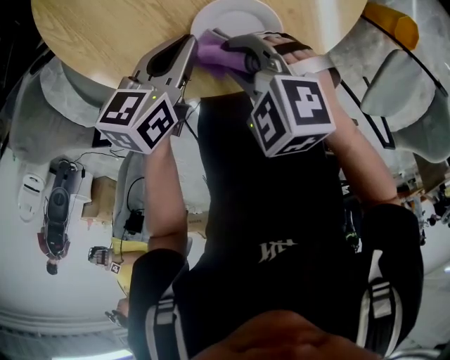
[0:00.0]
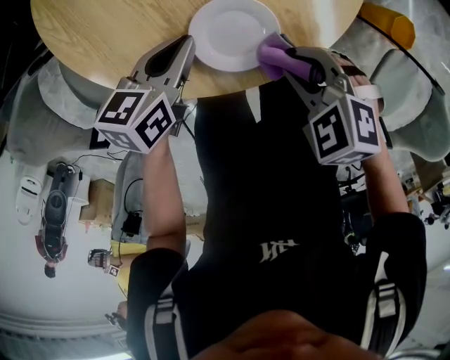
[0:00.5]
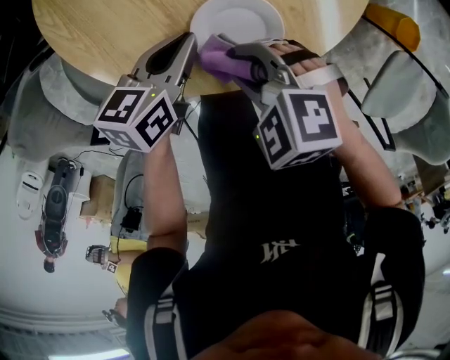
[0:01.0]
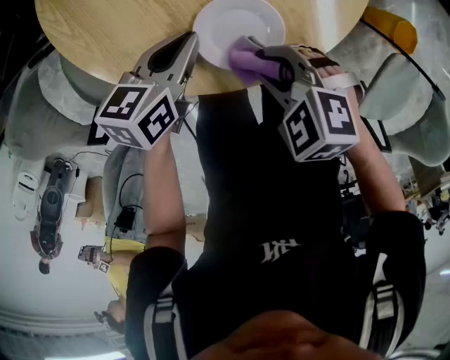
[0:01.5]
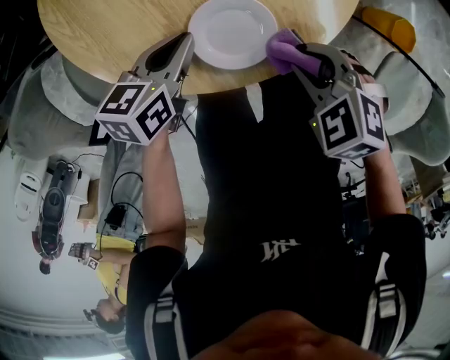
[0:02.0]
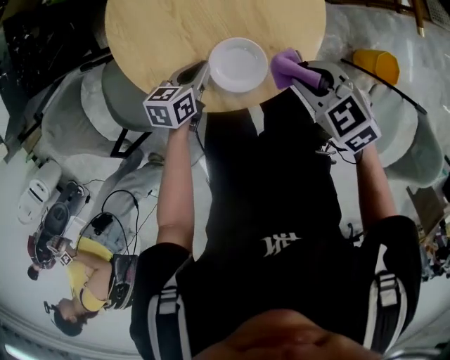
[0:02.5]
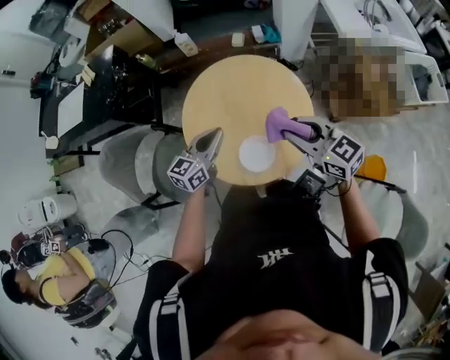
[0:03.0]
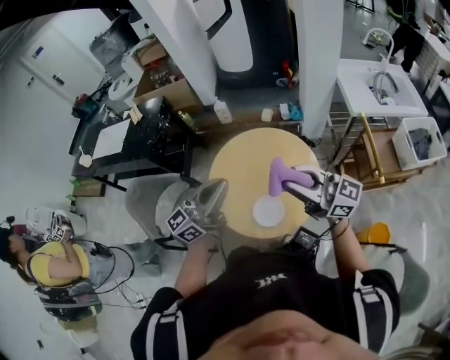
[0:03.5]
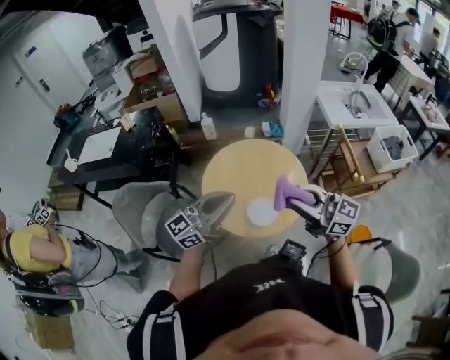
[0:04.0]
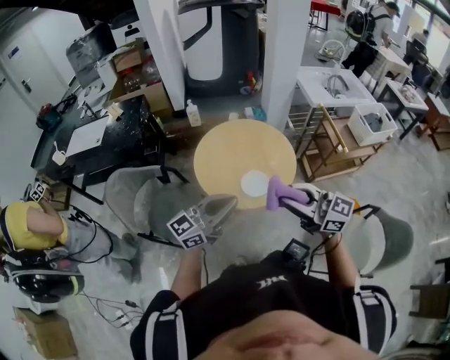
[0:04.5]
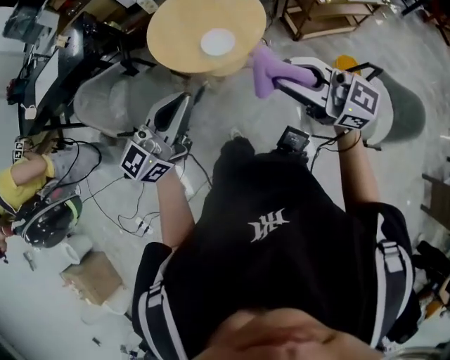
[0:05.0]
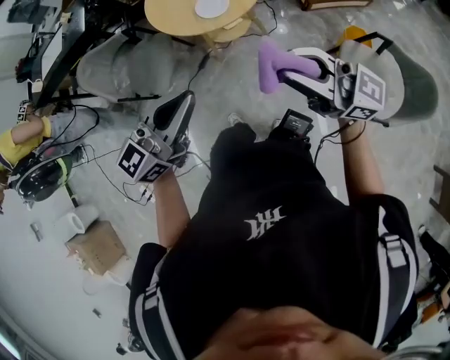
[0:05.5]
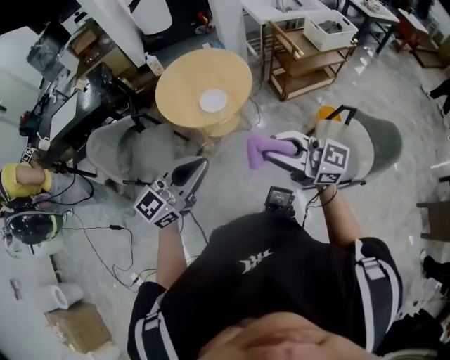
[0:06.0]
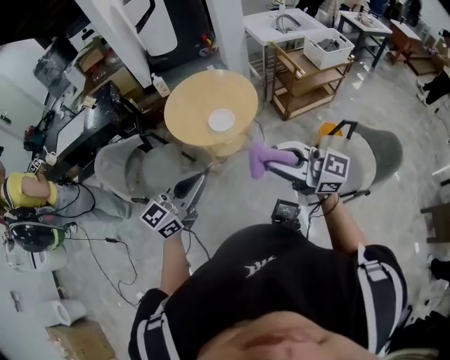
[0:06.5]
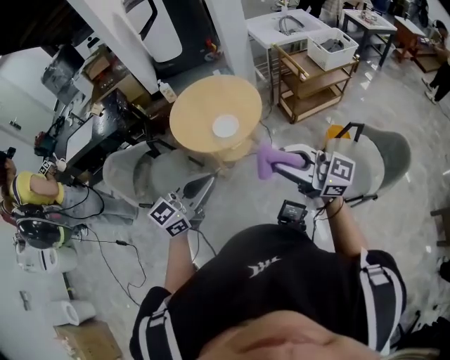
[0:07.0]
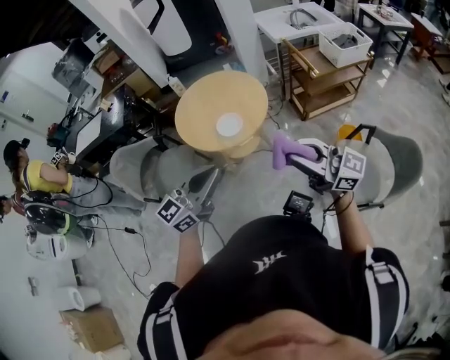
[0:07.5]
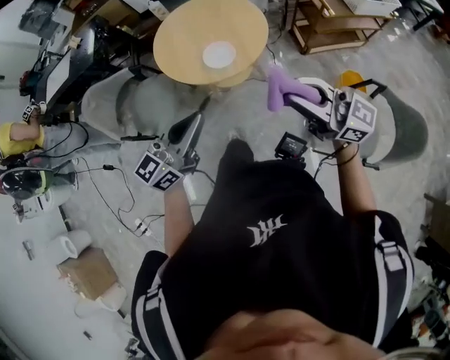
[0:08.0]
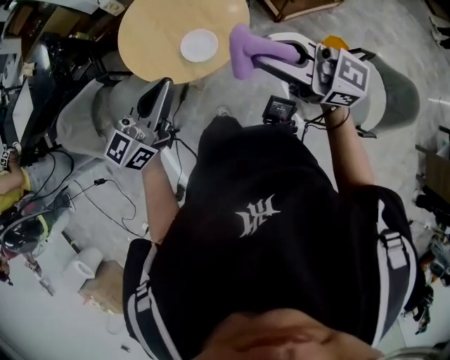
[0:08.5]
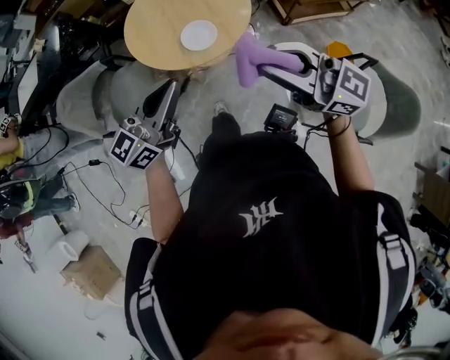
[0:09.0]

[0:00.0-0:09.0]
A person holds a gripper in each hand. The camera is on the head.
0:00.0 to 0:02.0: The right gripper moves approximately 15 cm.
0:02.0 to 0:04.5: The grippers both shift upward by approximately 40 cm. The left gripper angles its fingers upward, by some 60 degrees; the right gripper angles its fingers upward, by some 70 degrees.
0:04.5 to 0:07.0: The grippers both shift backward by roughly 20 cm.
0:07.0 to 0:09.0: Both grippers travel together forward, roughly 15 cm.

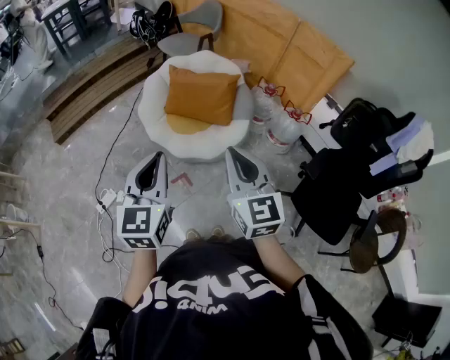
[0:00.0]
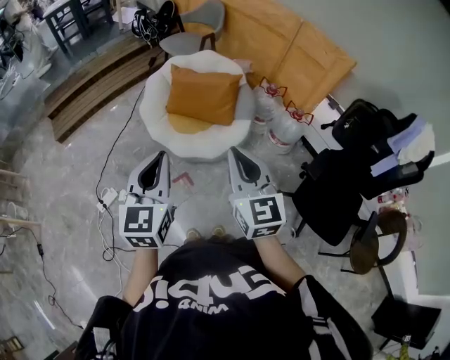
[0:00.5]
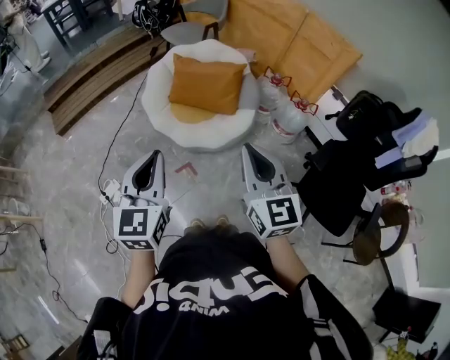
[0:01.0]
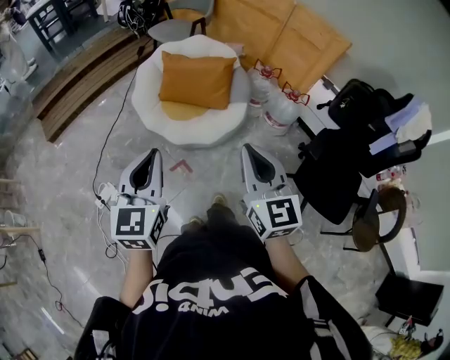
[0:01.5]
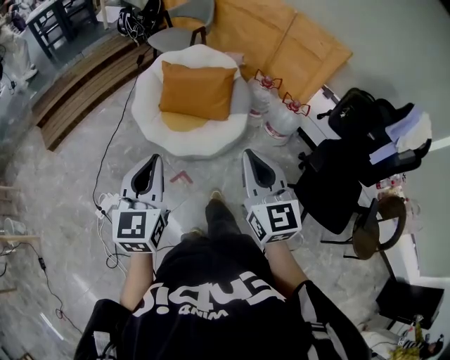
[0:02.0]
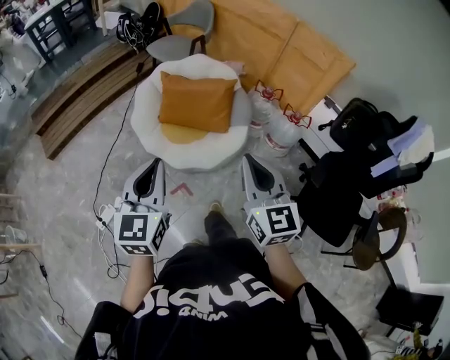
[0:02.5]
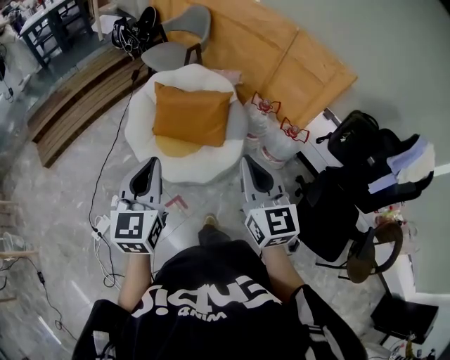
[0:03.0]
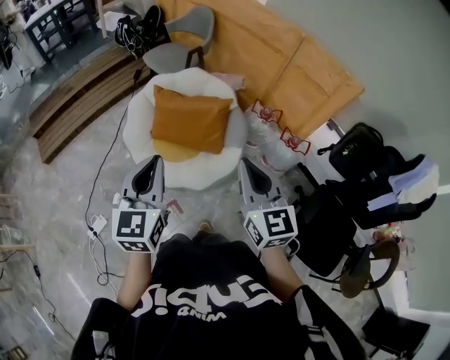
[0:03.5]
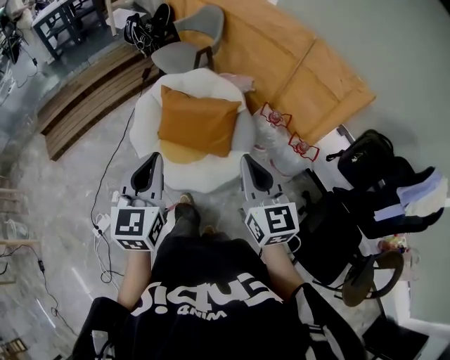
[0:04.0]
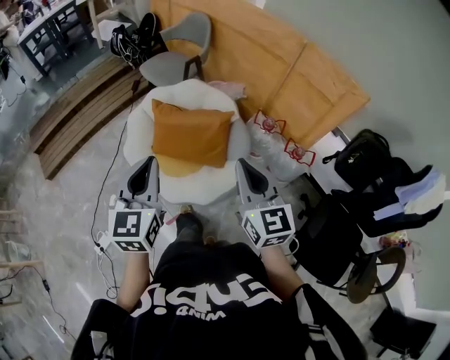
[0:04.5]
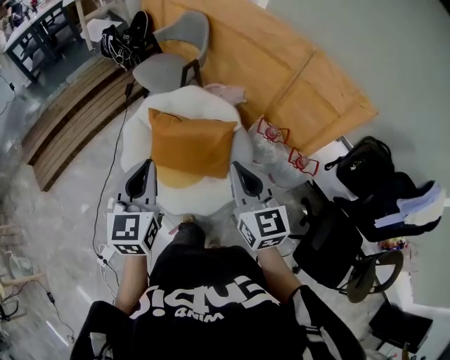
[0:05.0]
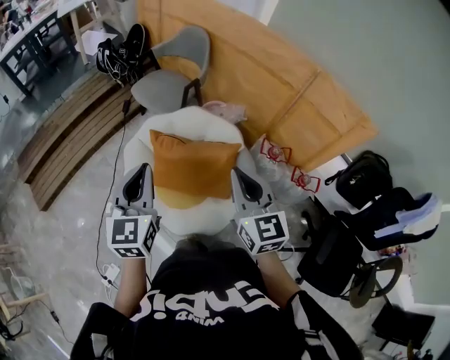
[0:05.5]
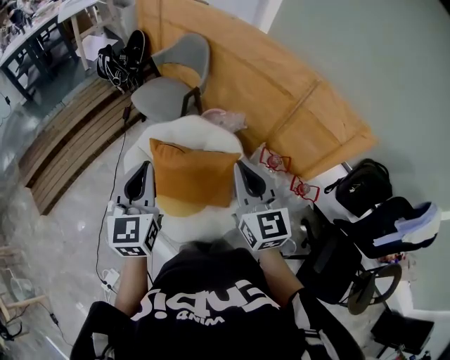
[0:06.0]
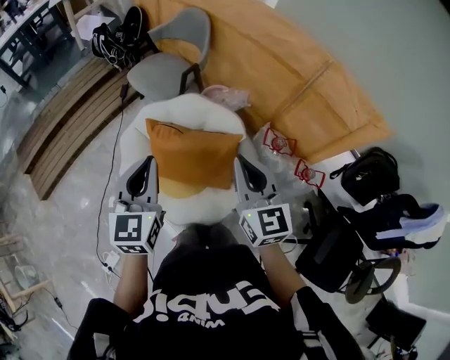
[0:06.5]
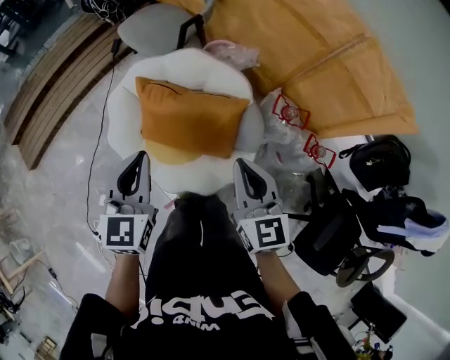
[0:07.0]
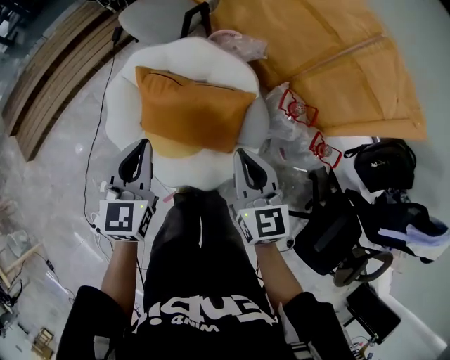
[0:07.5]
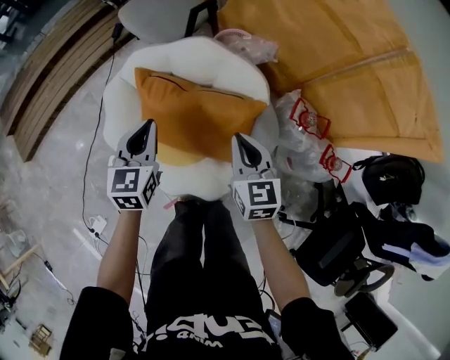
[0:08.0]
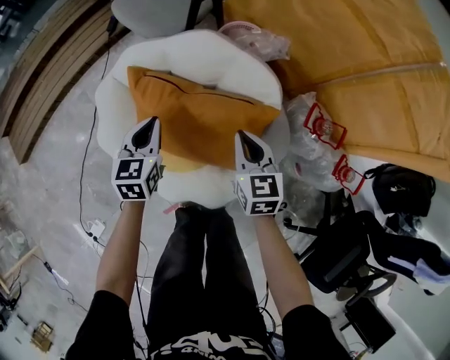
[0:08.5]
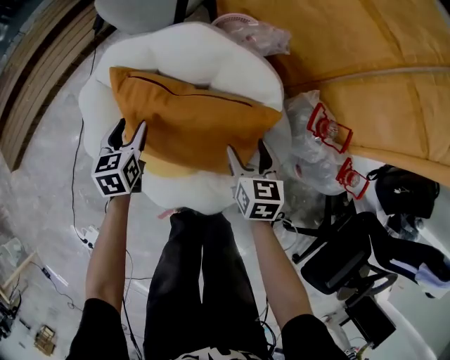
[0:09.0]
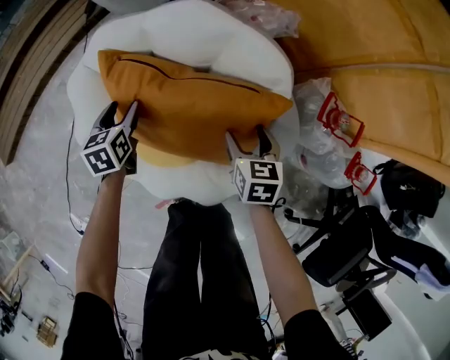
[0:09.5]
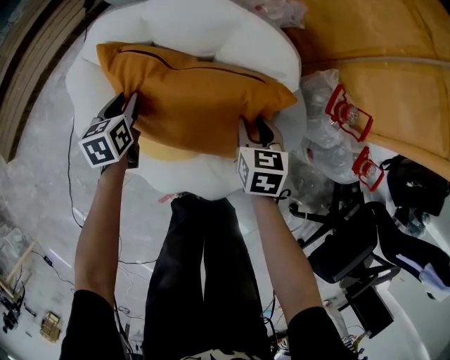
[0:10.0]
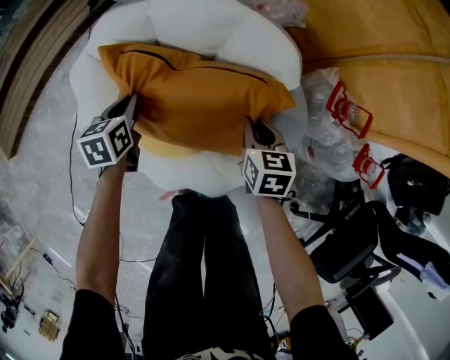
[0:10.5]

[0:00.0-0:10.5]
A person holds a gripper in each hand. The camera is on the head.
0:00.0 to 0:02.0: The left gripper moves some 5 cm.
0:02.0 to 0:04.0: Both grippers move forward, some 25 cm.
0:04.0 to 0:06.5: Both grippers move forward, roughly 30 cm.
0:06.5 to 0:08.5: Both grippers travel together downward, approximately 40 cm. The right gripper rotates approximately 30 degrees; the left gripper turns by roughly 20 degrees.
0:08.5 to 0:10.5: Both grippers travel together downward, roughly 15 cm. The left gripper opens, then closes again. The right gripper opens, then closes once more.

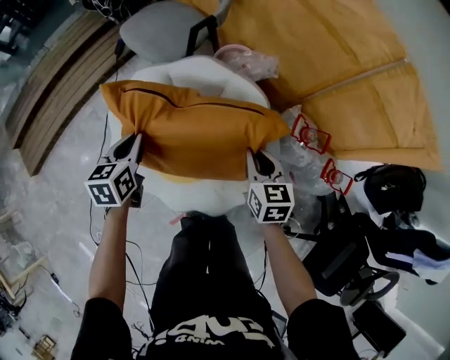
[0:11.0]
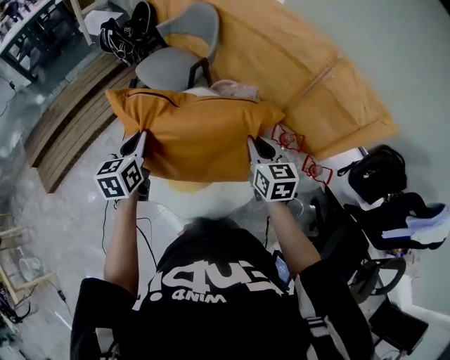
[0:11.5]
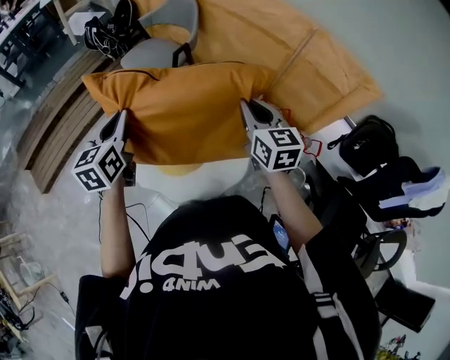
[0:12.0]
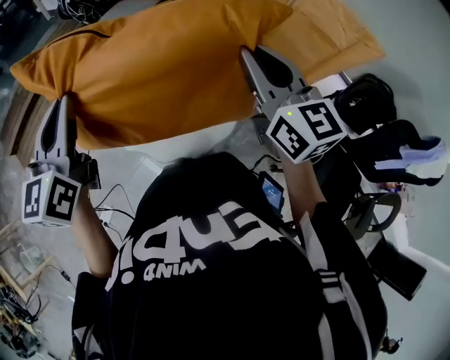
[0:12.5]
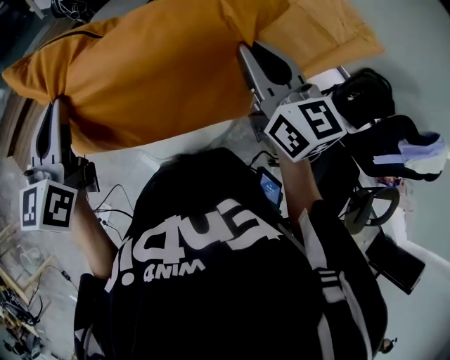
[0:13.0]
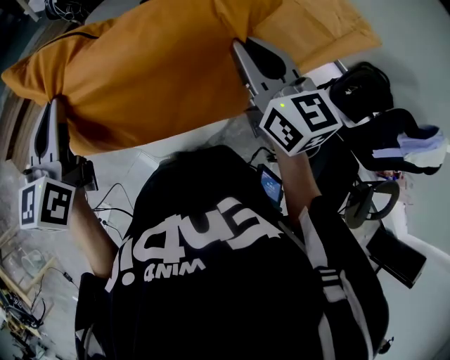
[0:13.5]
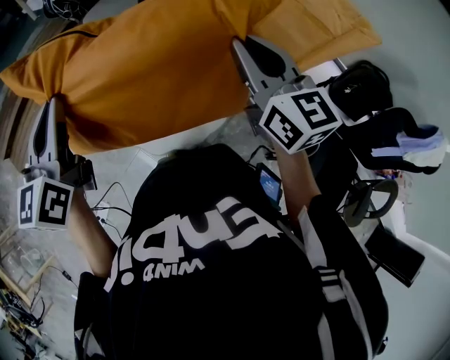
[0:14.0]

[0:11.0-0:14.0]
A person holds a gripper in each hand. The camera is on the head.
0:11.0 to 0:12.5: The left gripper is displaced upward and backward by some 50 cm, and changes its angle by some 30 degrees. Meanwhile the right gripper is displaced upward by some 40 cm, and tips its fingers upward by about 30 degrees.
0:12.5 to 0:14.0: There are only small adjustments of the grippers.

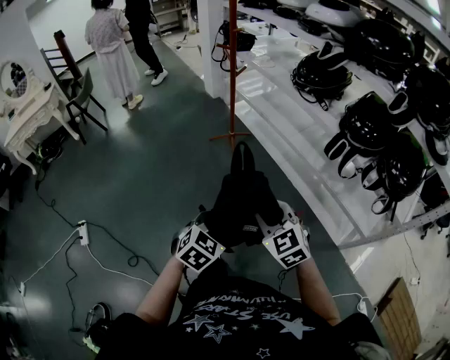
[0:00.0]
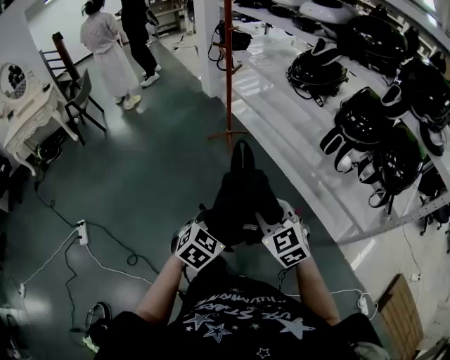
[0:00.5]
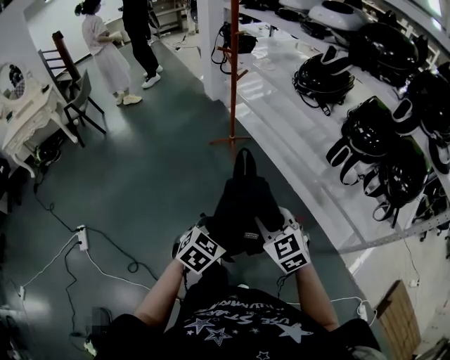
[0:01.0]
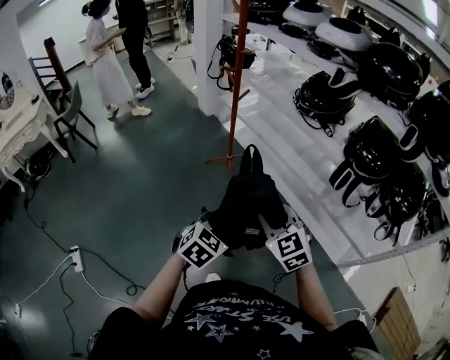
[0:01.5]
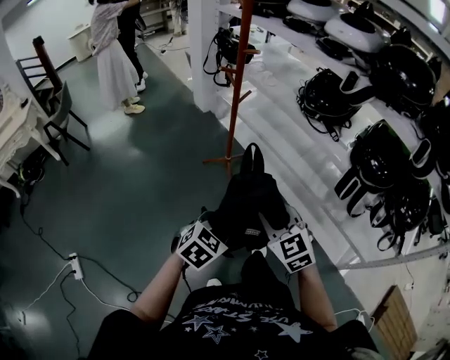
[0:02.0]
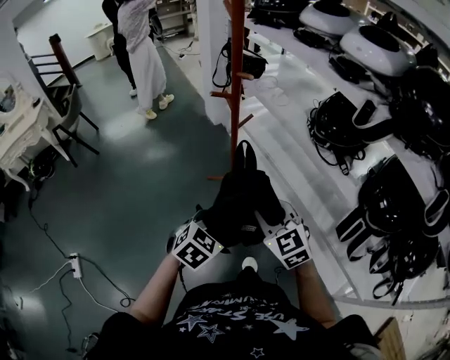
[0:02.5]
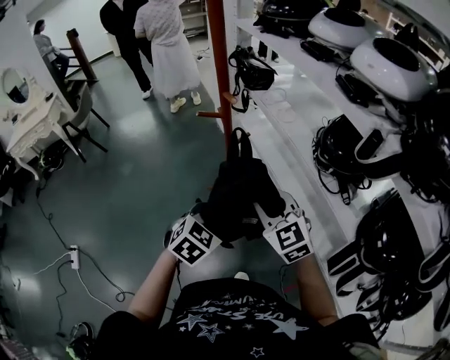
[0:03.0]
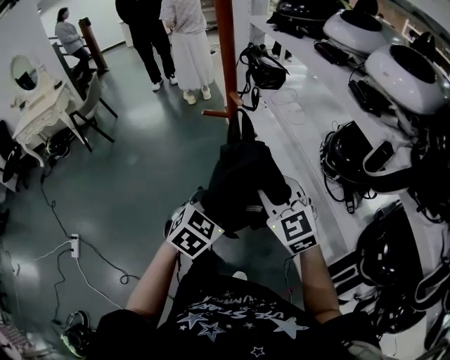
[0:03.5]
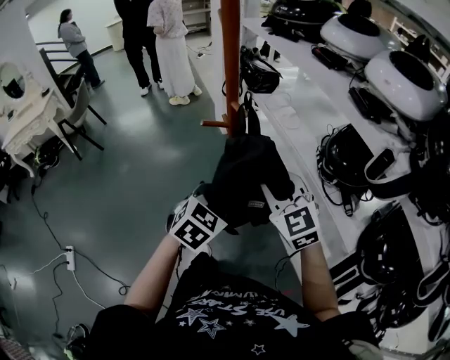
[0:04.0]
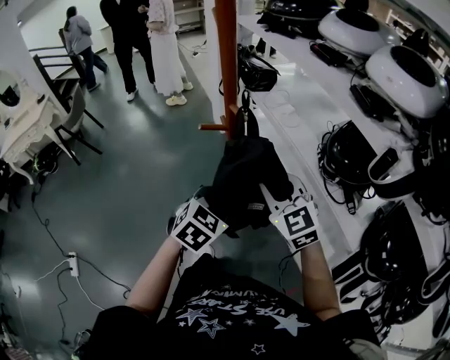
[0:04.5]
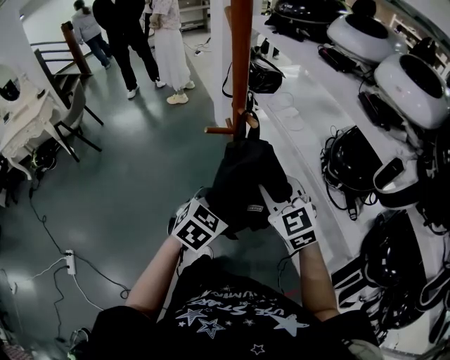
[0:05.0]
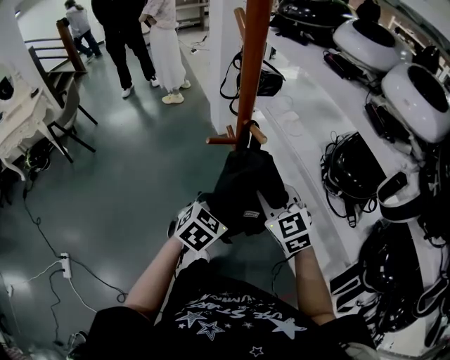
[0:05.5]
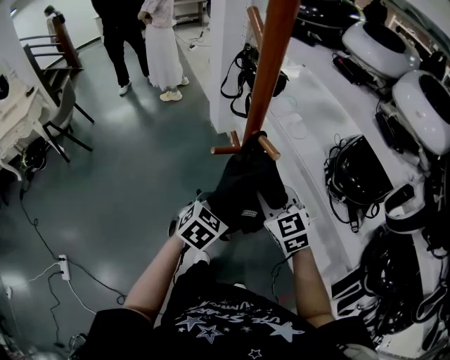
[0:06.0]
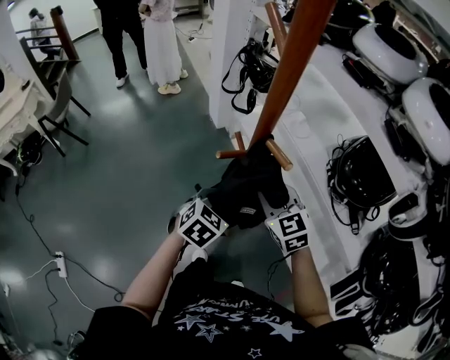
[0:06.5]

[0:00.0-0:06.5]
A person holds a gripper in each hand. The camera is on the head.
0:00.0 to 0:02.0: Both grippers travel together forward, roughly 25 cm.
0:02.0 to 0:04.5: The grippers both shift forward by approximately 35 cm.
0:04.5 to 0:06.5: Both grippers move forward, downward and to the left, approximately 15 cm.
